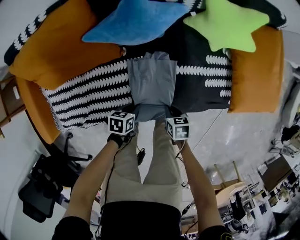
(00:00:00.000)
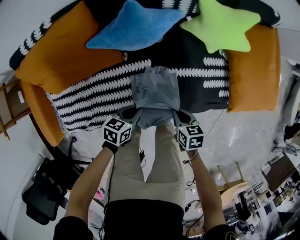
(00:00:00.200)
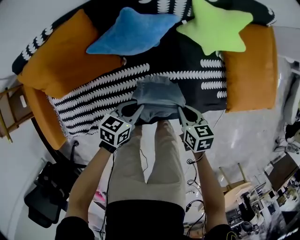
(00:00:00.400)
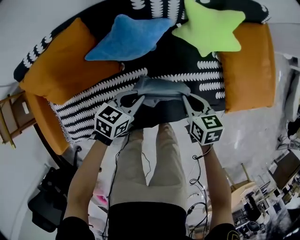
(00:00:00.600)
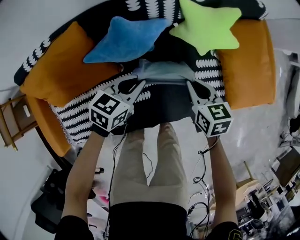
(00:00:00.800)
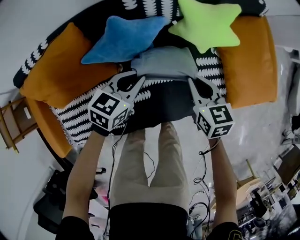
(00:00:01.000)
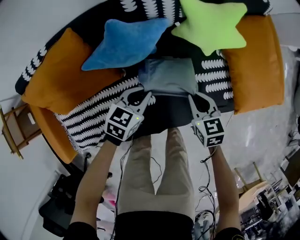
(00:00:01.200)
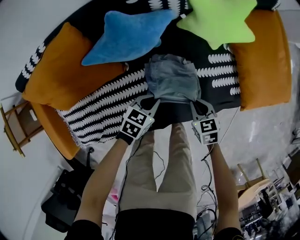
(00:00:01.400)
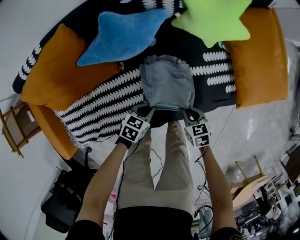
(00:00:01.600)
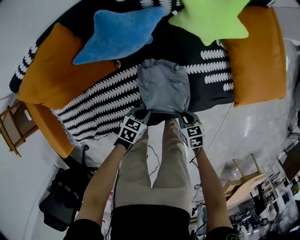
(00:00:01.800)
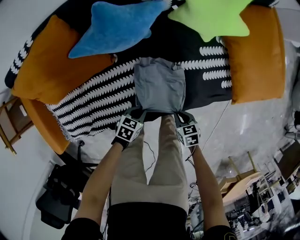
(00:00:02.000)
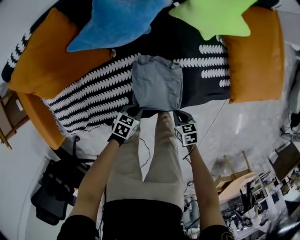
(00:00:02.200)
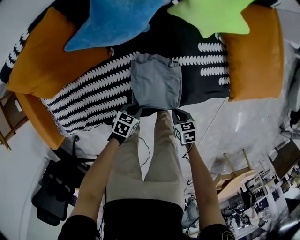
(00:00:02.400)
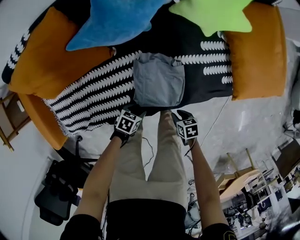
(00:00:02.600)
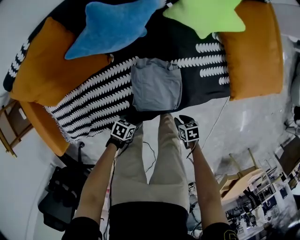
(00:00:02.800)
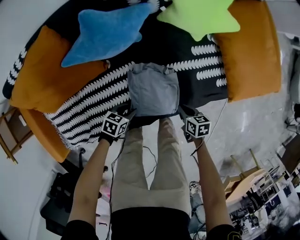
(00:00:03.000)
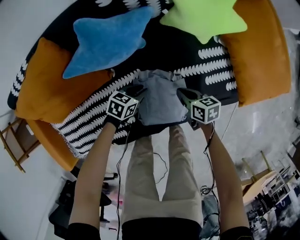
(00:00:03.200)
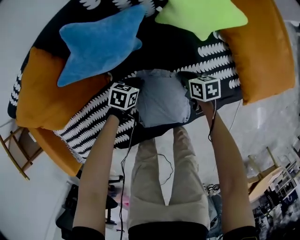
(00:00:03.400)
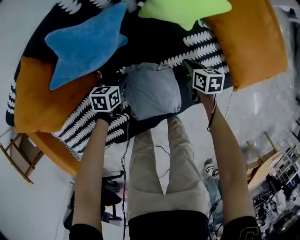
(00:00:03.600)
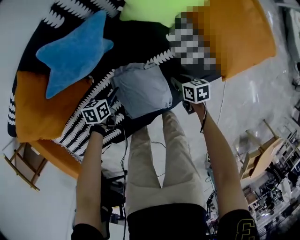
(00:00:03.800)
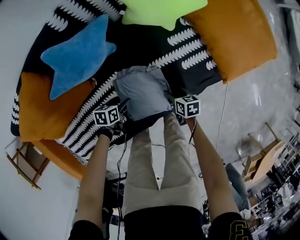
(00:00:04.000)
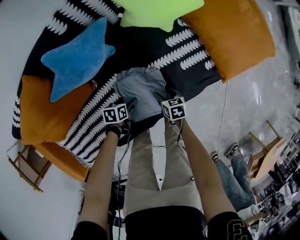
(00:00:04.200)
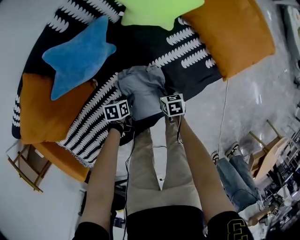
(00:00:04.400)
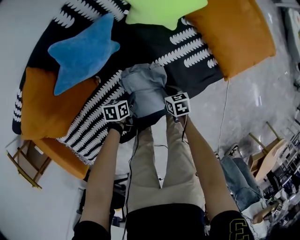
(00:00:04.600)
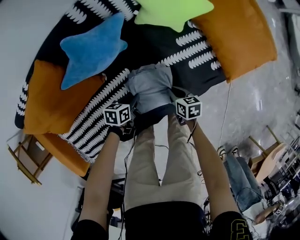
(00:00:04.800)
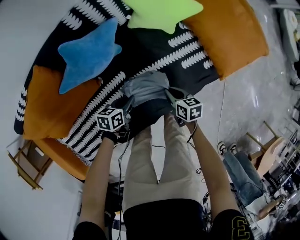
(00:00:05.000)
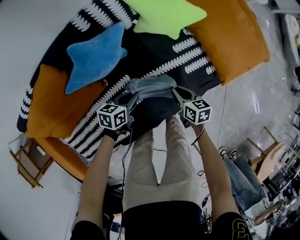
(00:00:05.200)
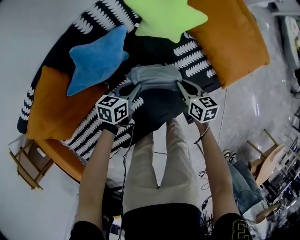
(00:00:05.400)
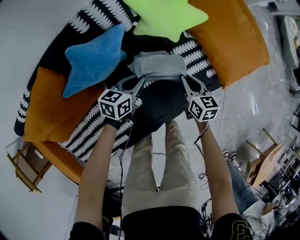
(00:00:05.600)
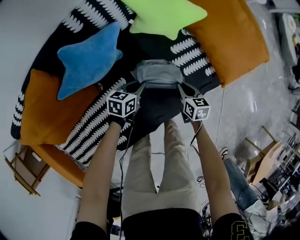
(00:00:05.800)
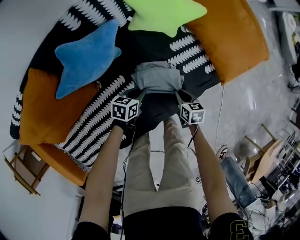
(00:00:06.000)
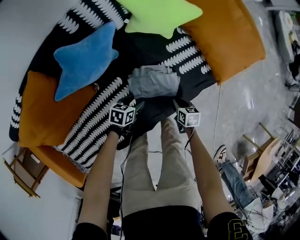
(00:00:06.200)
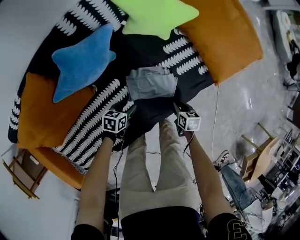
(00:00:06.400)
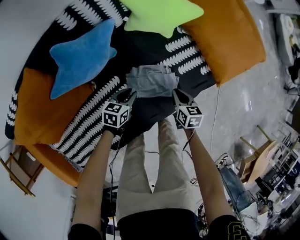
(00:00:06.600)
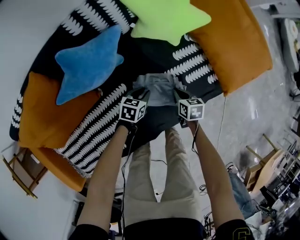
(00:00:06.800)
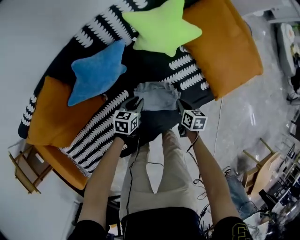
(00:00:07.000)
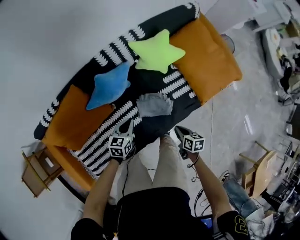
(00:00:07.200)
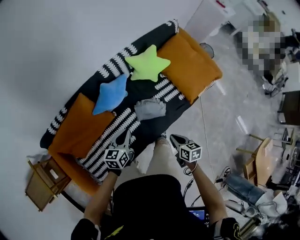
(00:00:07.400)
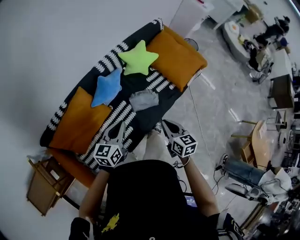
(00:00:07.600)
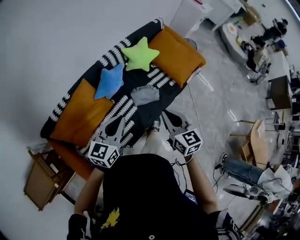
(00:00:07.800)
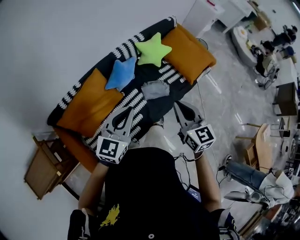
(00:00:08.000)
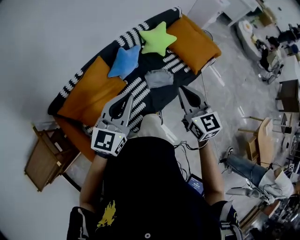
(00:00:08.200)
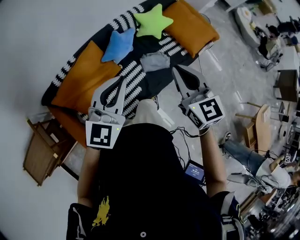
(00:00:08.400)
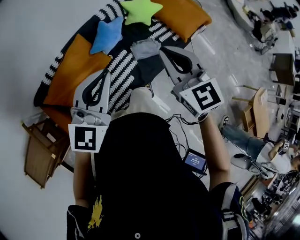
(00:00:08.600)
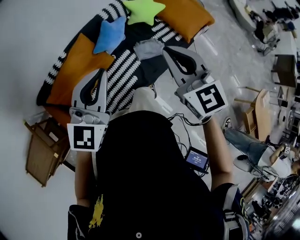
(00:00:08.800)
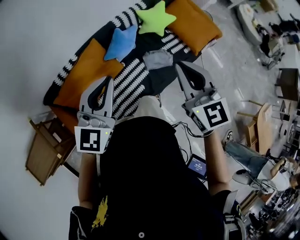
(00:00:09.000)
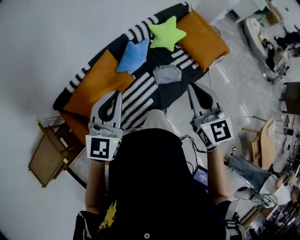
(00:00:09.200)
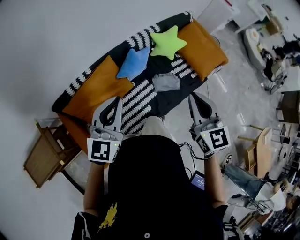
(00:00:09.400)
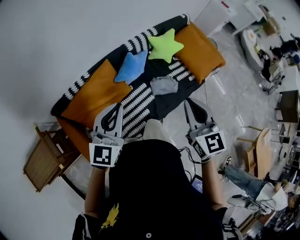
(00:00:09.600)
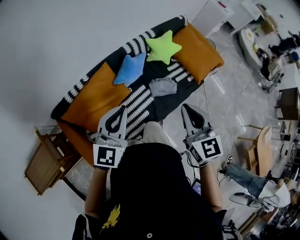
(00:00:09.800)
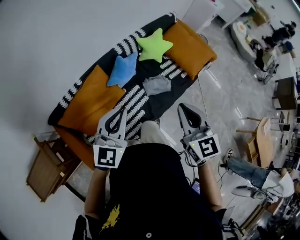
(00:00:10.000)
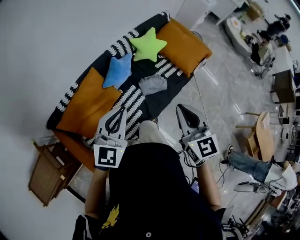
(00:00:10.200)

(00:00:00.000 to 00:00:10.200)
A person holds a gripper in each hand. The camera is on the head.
00:00:00.000 - 00:00:01.400: The right gripper travels upward and back again, some 20 cm each way. Meanwhile the left gripper goes upward and returns, about 20 cm each way, and changes its angle by about 40 degrees.
00:00:01.400 - 00:00:03.000: The left gripper opens. Meanwhile the right gripper changes its angle by roughly 30 degrees.
00:00:03.000 - 00:00:04.400: The right gripper is displaced downward by about 10 cm. The left gripper opens, then closes once more.
00:00:04.400 - 00:00:05.800: The left gripper goes roughly 15 cm forward and upward, and swivels about 30 degrees. The right gripper moves upward and forward, roughly 10 cm.
00:00:05.800 - 00:00:07.200: The left gripper heads upward, covering roughly 20 cm, turns by some 20 degrees, and opens, then closes again, while the right gripper moves up and down over approximately 25 cm, changing direction 3 times.
00:00:07.200 - 00:00:08.800: The right gripper goes roughly 60 cm upward and to the left, and angles its fingers upward, by approximately 40 degrees. The left gripper shifts about 50 cm upward, and angles its fingers upward, by some 40 degrees.
00:00:08.800 - 00:00:10.200: The right gripper is displaced backward by approximately 10 cm.

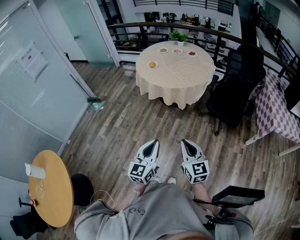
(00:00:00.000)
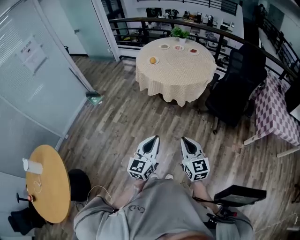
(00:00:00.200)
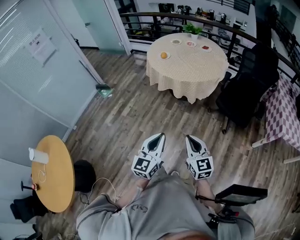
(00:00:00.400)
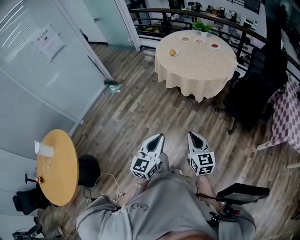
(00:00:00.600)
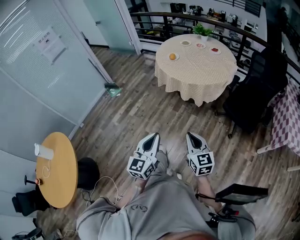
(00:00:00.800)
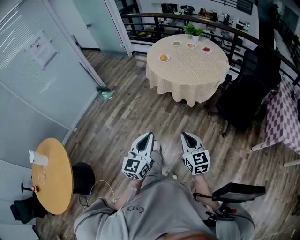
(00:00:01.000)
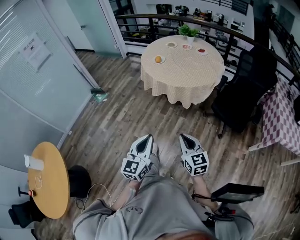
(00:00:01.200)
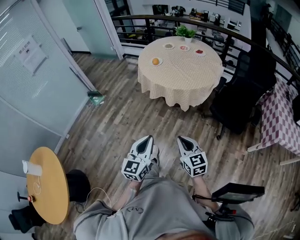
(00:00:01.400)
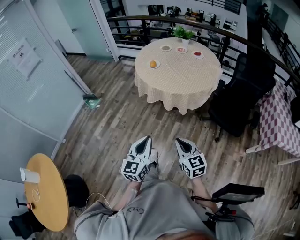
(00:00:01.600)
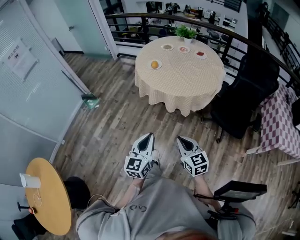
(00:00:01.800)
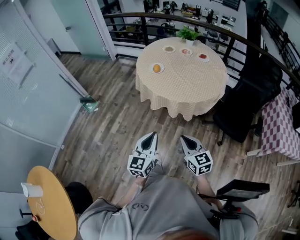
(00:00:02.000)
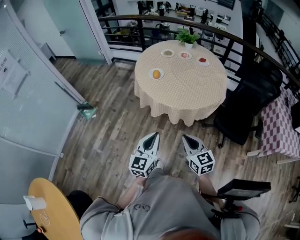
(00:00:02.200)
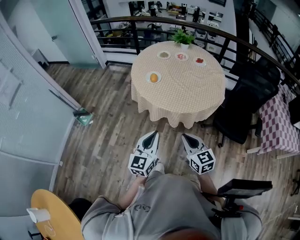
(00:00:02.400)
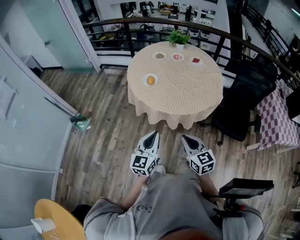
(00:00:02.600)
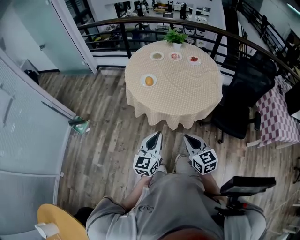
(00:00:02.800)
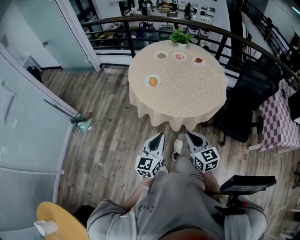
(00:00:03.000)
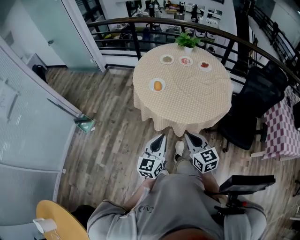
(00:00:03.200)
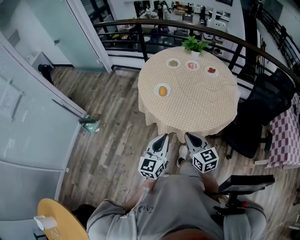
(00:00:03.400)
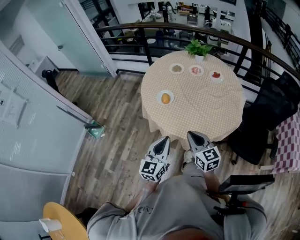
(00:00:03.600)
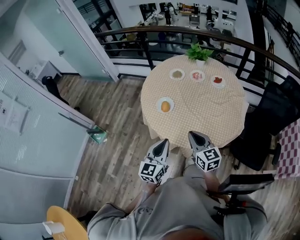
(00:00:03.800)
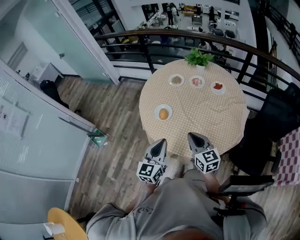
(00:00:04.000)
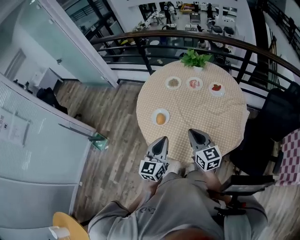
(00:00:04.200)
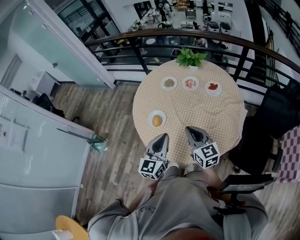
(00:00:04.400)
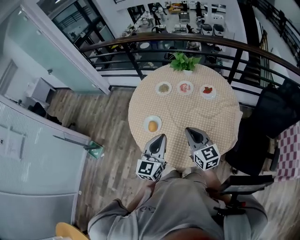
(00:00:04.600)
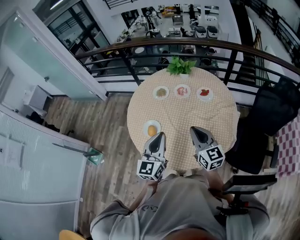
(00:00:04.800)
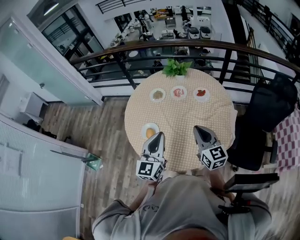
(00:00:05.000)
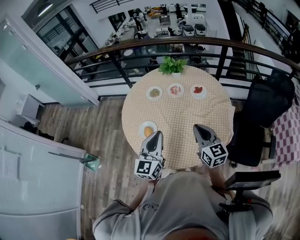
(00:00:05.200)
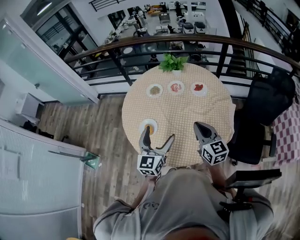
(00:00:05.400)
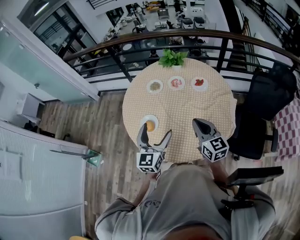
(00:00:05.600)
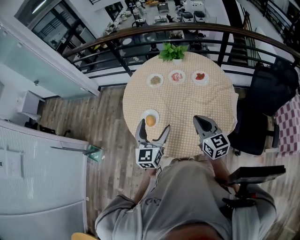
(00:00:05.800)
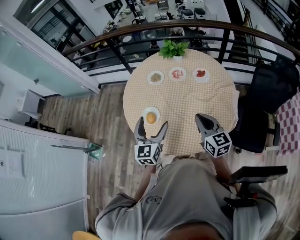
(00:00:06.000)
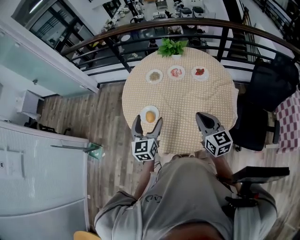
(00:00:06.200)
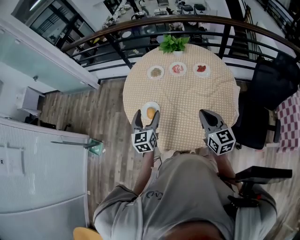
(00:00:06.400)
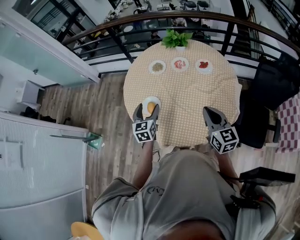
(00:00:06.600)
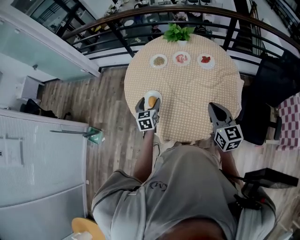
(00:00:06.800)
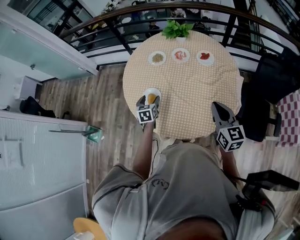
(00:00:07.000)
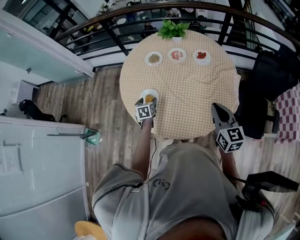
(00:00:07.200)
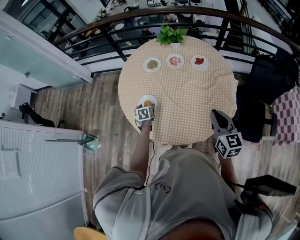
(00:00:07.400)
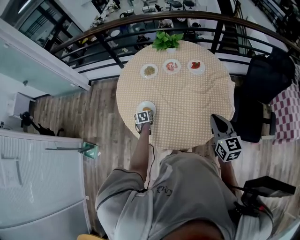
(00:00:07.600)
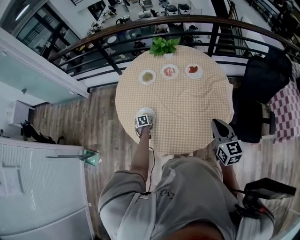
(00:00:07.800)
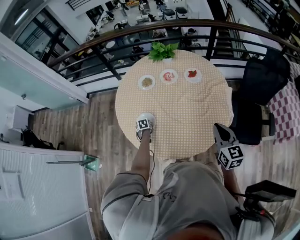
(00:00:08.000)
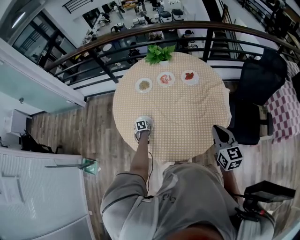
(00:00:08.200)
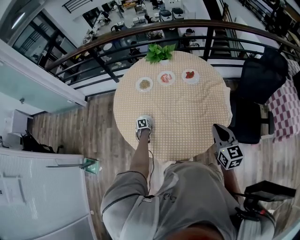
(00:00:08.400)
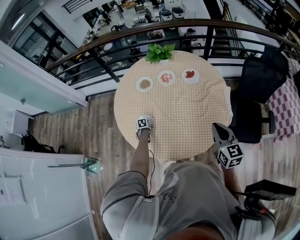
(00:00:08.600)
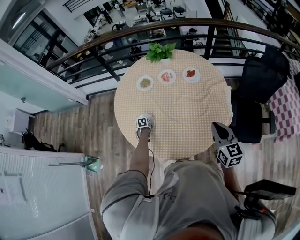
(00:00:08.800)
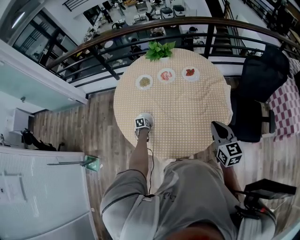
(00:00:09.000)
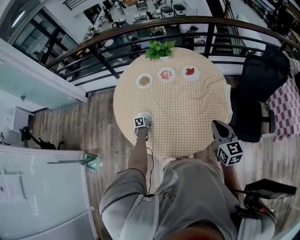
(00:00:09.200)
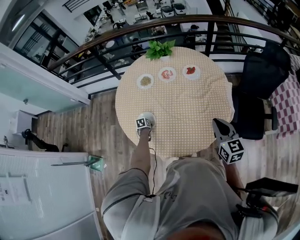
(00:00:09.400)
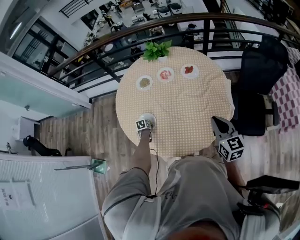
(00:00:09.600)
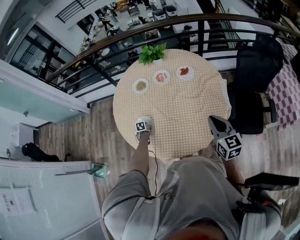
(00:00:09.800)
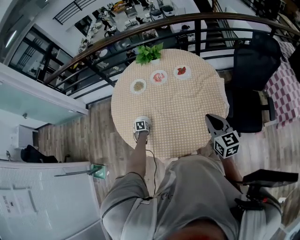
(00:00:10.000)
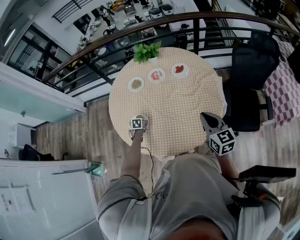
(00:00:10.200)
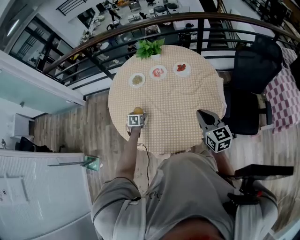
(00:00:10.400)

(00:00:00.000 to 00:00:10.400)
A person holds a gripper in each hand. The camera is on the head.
00:00:00.000 - 00:00:01.400: The right gripper goes some 15 cm forward and downward; the left gripper shifts some 10 cm forward.
00:00:01.400 - 00:00:03.000: Both grippers are carried forward, approximately 40 cm.
00:00:03.000 - 00:00:04.400: The two grippers go about 35 cm forward.
00:00:04.400 - 00:00:06.000: The left gripper goes approximately 5 cm forward, and opens, while the right gripper shifts roughly 5 cm to the right.
00:00:06.000 - 00:00:07.400: The right gripper moves some 5 cm. The left gripper moves downward, about 30 cm, and tips its fingers downward by about 40 degrees.
00:00:07.400 - 00:00:09.000: The left gripper travels downward by some 15 cm, and rotates roughly 20 degrees.
00:00:09.000 - 00:00:10.400: The left gripper shifts roughly 15 cm upward, and swivels roughly 30 degrees.

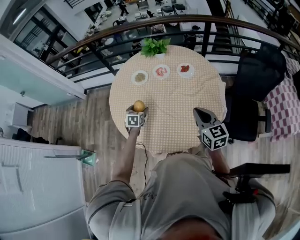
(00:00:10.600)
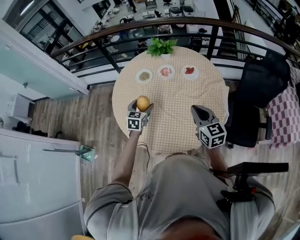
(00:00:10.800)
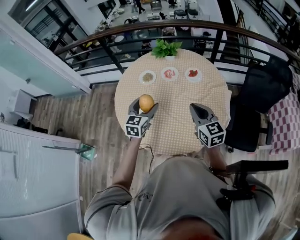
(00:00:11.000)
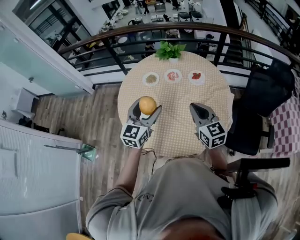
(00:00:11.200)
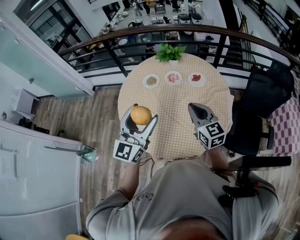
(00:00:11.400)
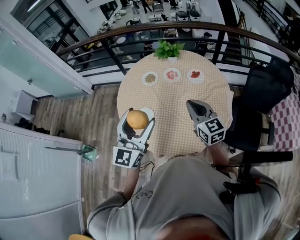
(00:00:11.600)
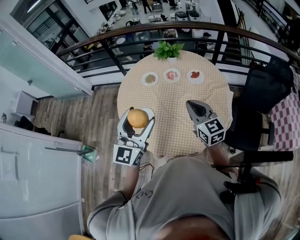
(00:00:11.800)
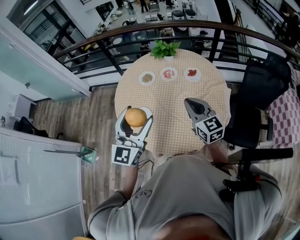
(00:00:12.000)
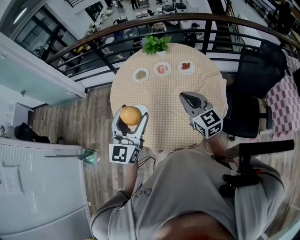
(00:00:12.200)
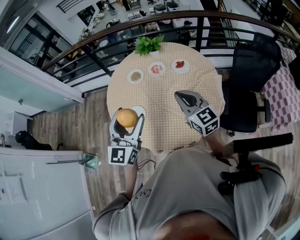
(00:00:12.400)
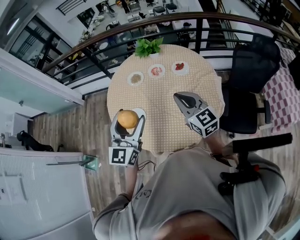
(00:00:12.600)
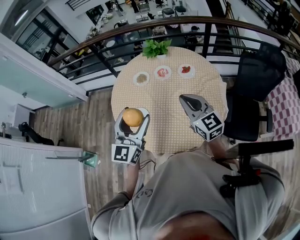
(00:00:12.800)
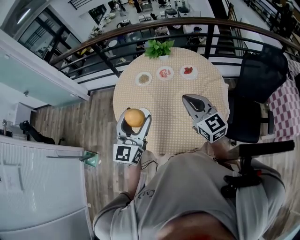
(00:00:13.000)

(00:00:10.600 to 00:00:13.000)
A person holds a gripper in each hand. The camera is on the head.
00:00:10.600 - 00:00:11.800: The left gripper moves upward and backward, some 40 cm, and angles its fingers upward, by some 50 degrees; the right gripper goes approximately 10 cm to the left and upward.
00:00:11.800 - 00:00:13.000: The grippers move only a little.
